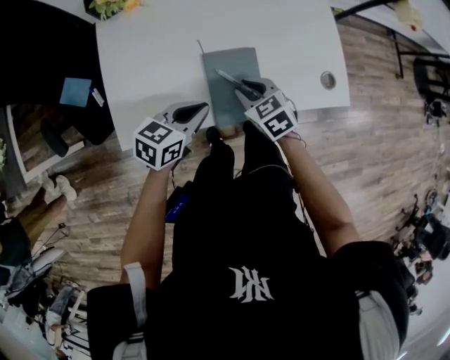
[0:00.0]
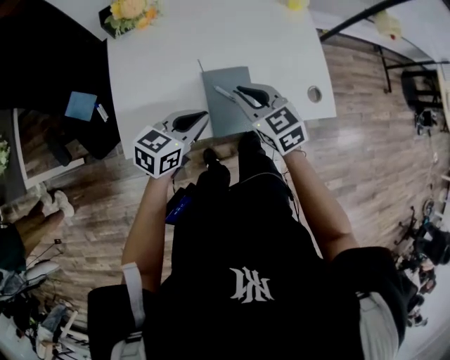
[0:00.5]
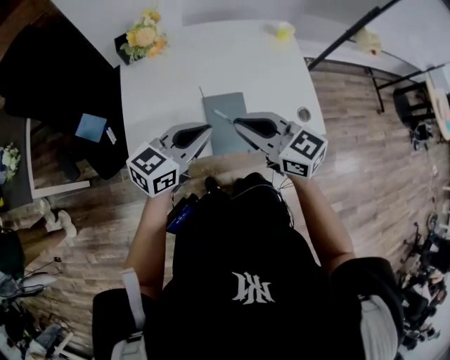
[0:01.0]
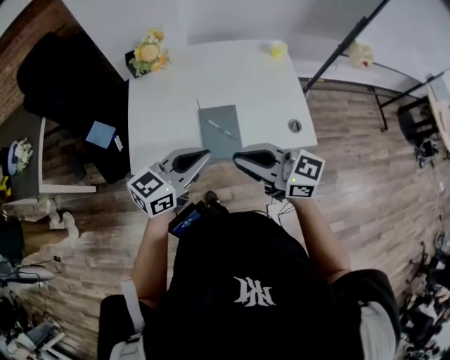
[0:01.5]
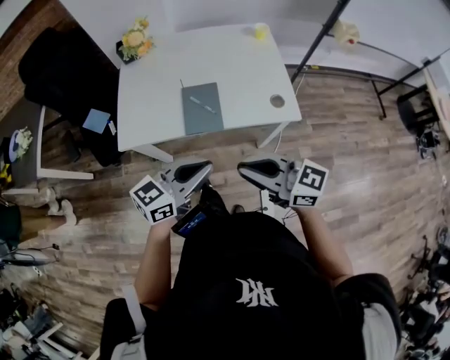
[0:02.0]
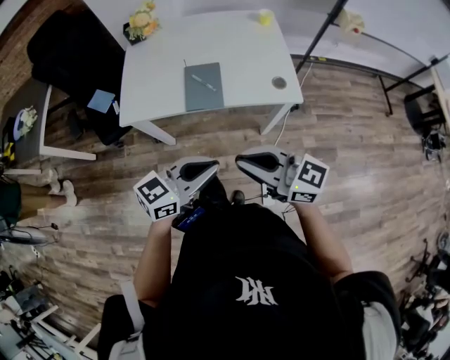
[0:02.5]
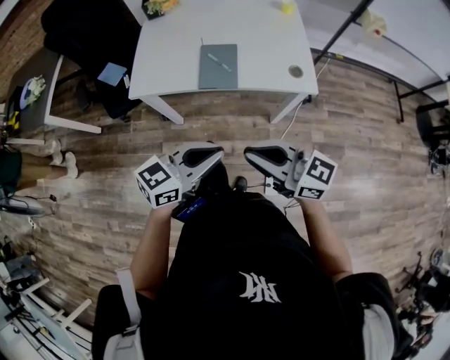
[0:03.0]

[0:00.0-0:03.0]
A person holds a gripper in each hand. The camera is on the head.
0:00.0 to 0:01.5: The grippers both shift upward and backward by approximately 25 cm. The right gripper points its fingers some 50 degrees further upward. The left gripper swivels approximately 30 degrees.
0:01.5 to 0:03.0: The left gripper ends up approximately 25 cm from where it was. Meanwhile the right gripper moves roughly 20 cm.

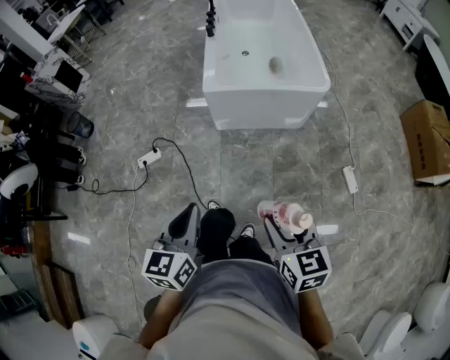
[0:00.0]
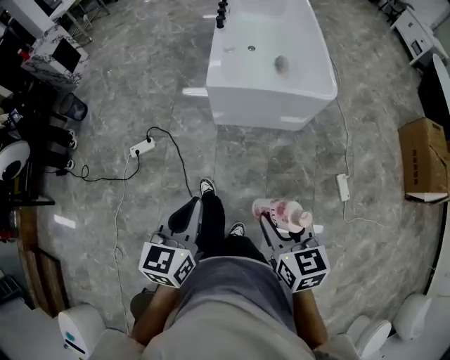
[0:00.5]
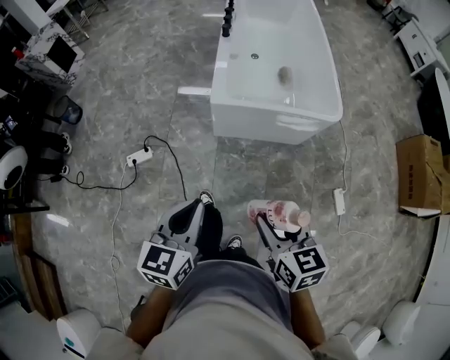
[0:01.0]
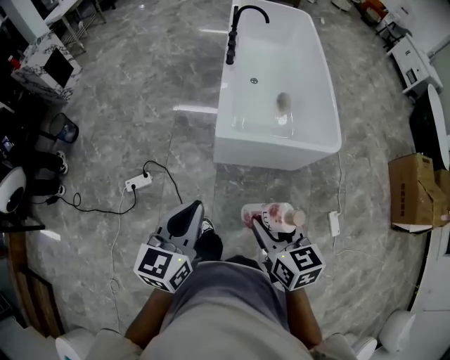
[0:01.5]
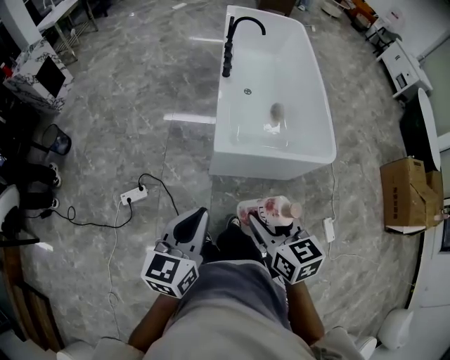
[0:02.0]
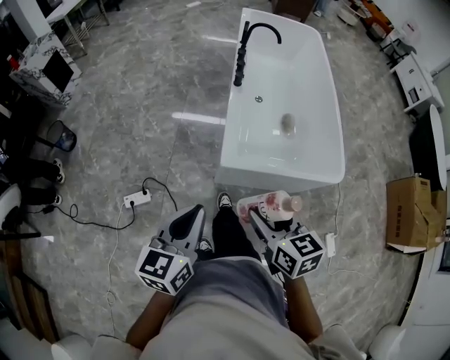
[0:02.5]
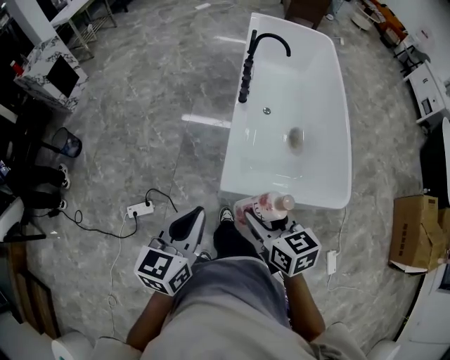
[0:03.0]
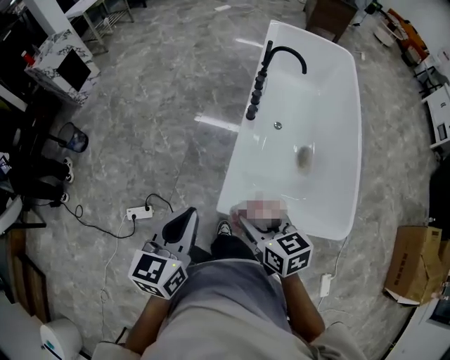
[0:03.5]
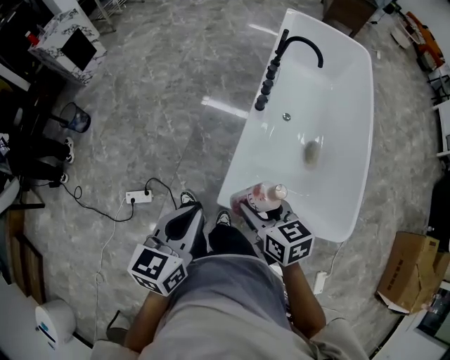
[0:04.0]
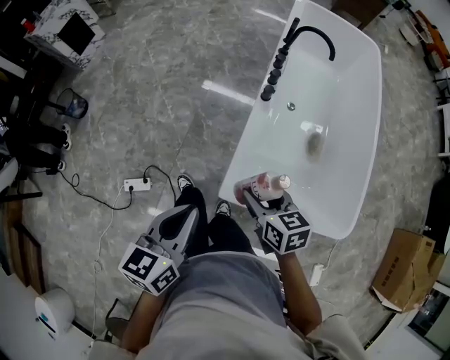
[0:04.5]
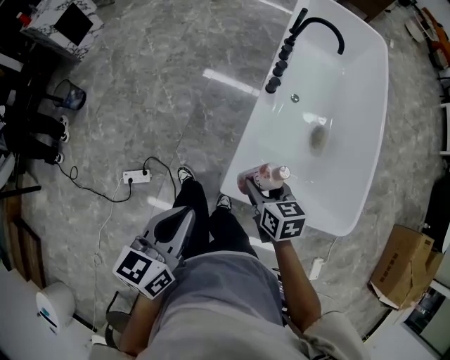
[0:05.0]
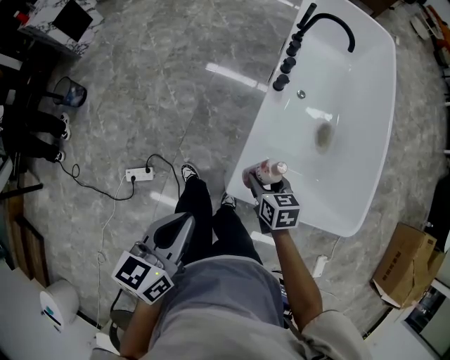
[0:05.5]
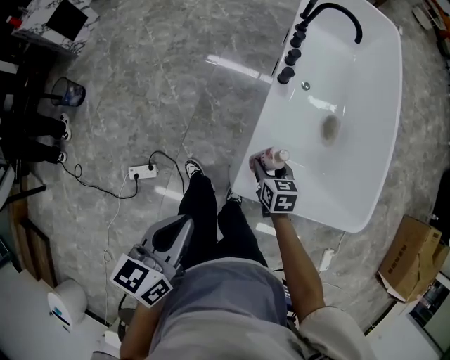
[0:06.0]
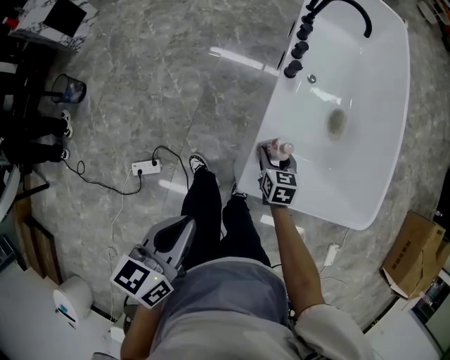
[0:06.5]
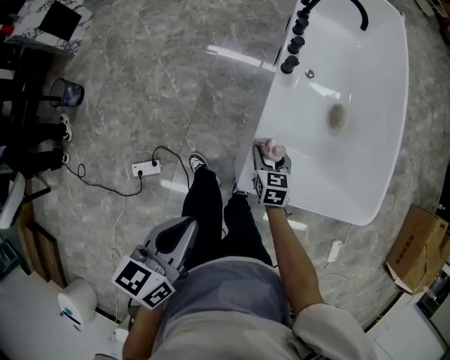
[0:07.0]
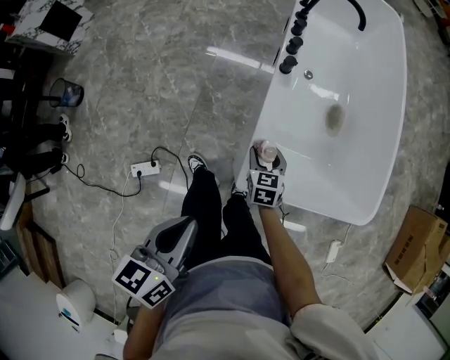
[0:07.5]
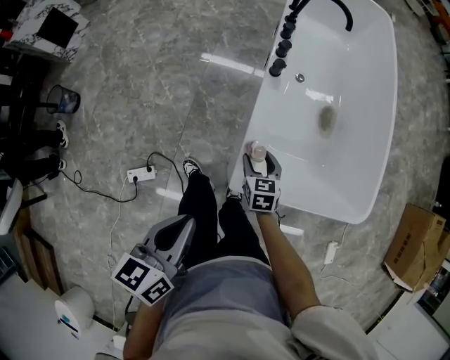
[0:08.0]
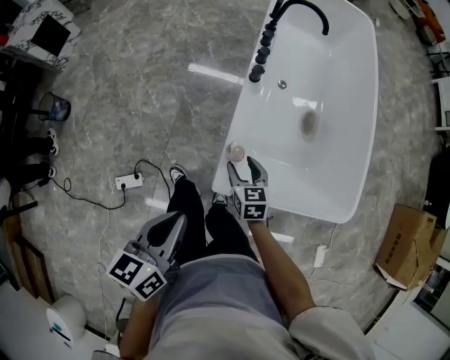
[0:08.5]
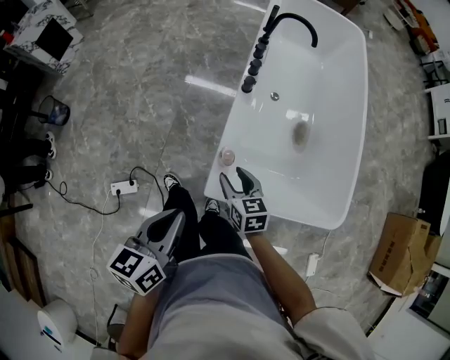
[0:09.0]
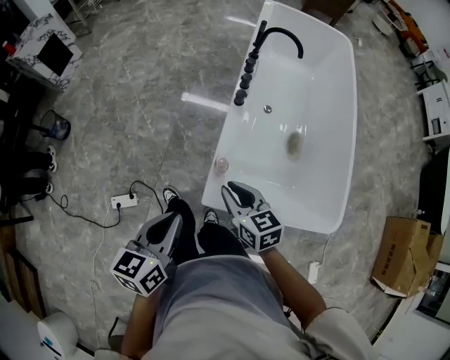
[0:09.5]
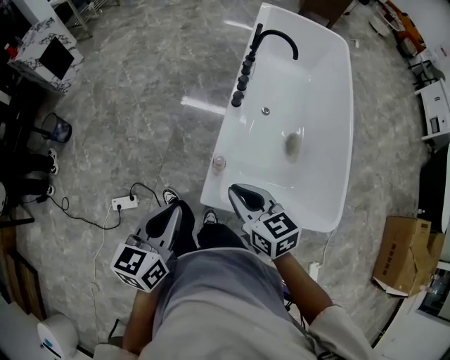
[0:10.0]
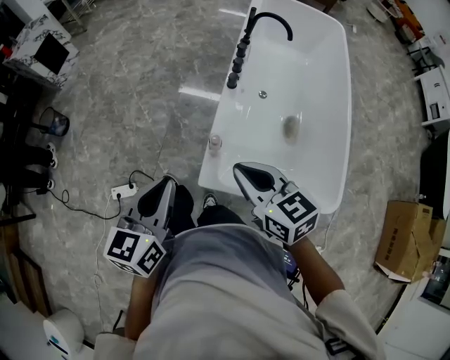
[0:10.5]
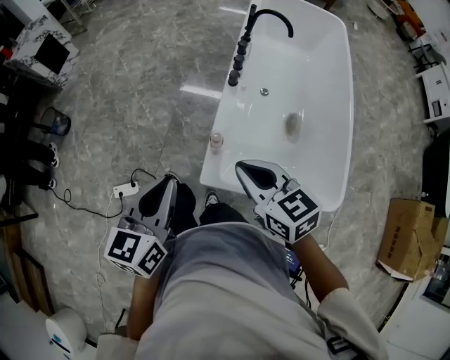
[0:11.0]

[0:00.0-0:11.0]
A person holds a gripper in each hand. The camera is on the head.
0:00.0 to 0:02.0: The right gripper moves forward and to the left, some 40 cm, while the left gripper shifts some 30 cm forward.
0:02.0 to 0:03.5: Both grippers travel together forward, about 30 cm.
0:03.5 to 0:05.5: The left gripper shifts roughly 10 cm downward and to the left. The right gripper is displaced downward and forward by about 20 cm.
0:05.5 to 0:07.5: The right gripper moves downward, approximately 10 cm, and rotates approximately 20 degrees.
0:07.5 to 0:09.0: The right gripper is displaced upward and backward by roughly 15 cm; the left gripper moves to the right, approximately 5 cm.
0:09.0 to 0:11.0: The left gripper is displaced upward by about 10 cm; the right gripper heads upward, covering roughly 20 cm, changes its angle by about 20 degrees, and closes up.

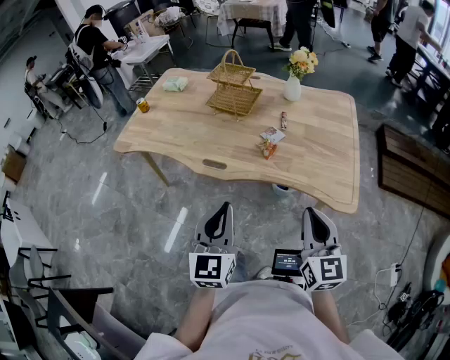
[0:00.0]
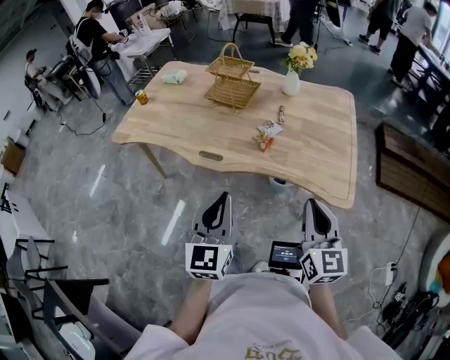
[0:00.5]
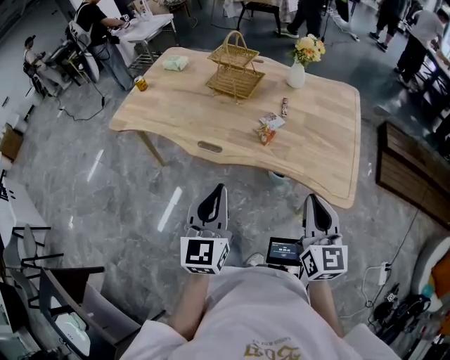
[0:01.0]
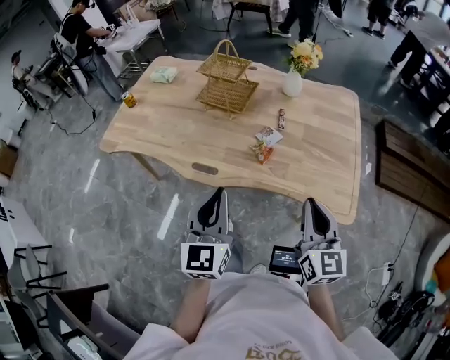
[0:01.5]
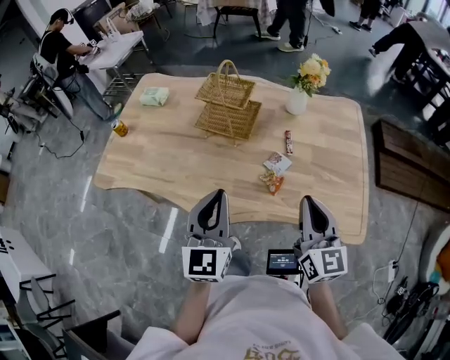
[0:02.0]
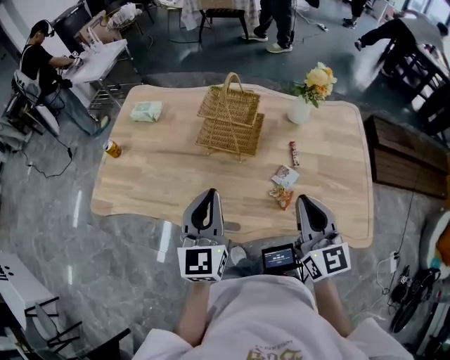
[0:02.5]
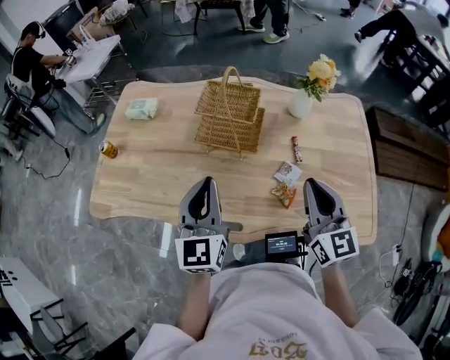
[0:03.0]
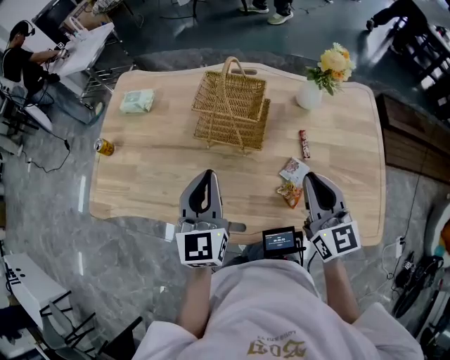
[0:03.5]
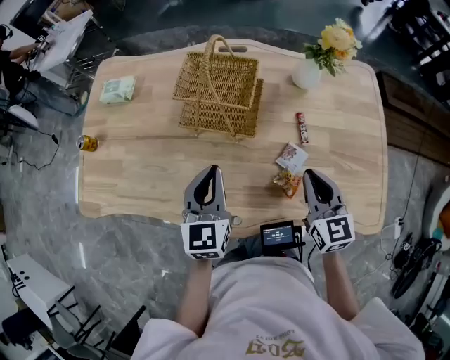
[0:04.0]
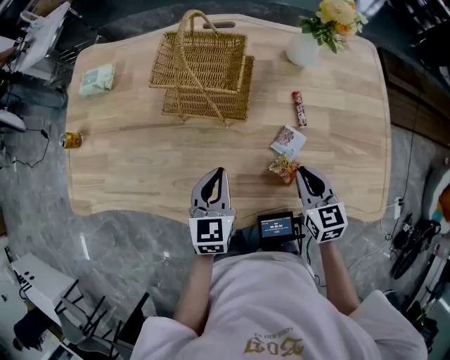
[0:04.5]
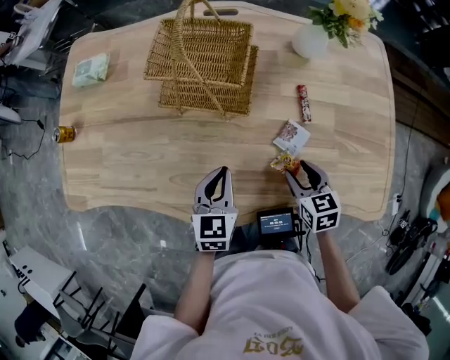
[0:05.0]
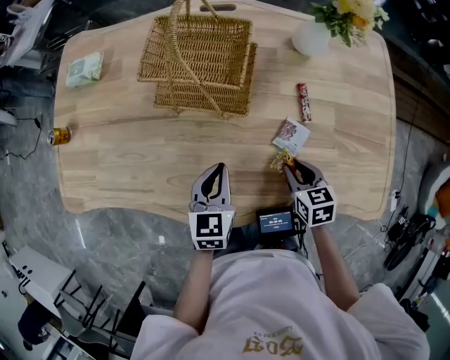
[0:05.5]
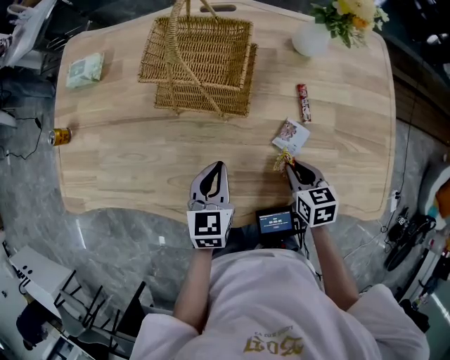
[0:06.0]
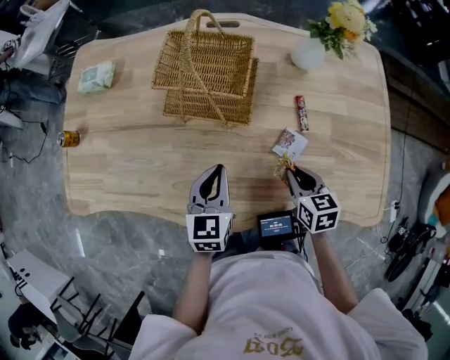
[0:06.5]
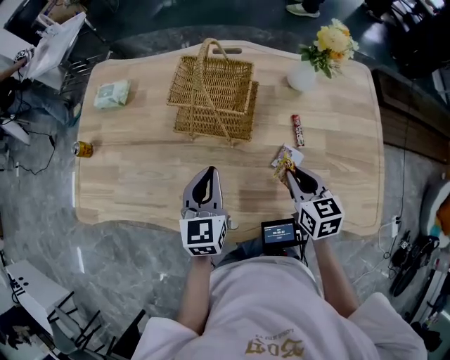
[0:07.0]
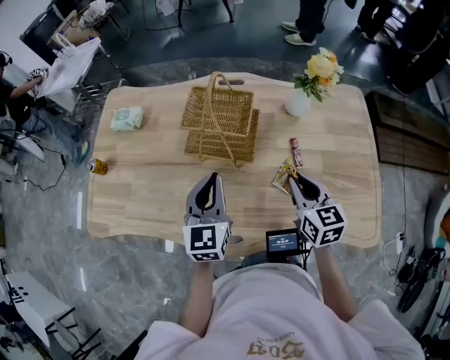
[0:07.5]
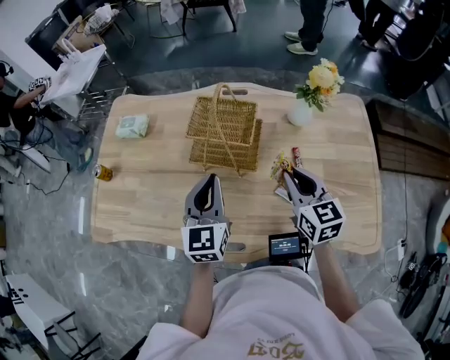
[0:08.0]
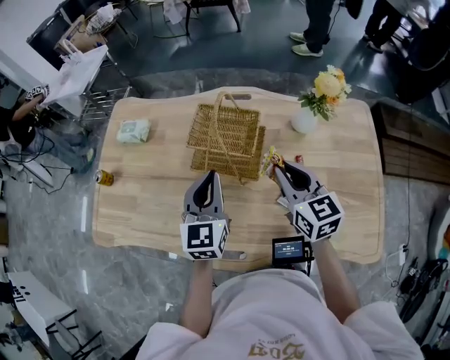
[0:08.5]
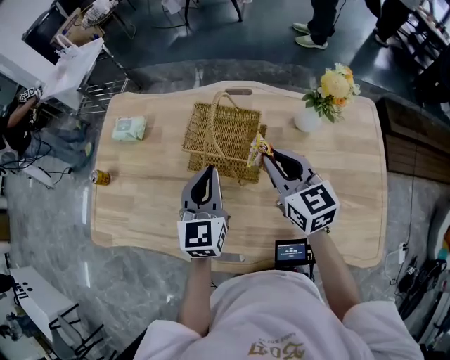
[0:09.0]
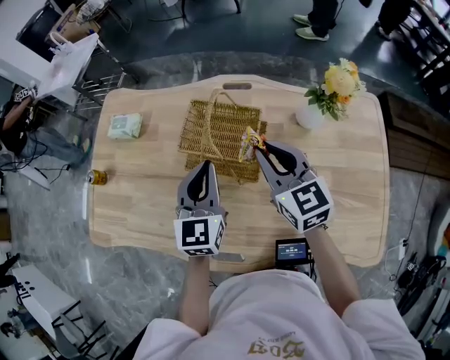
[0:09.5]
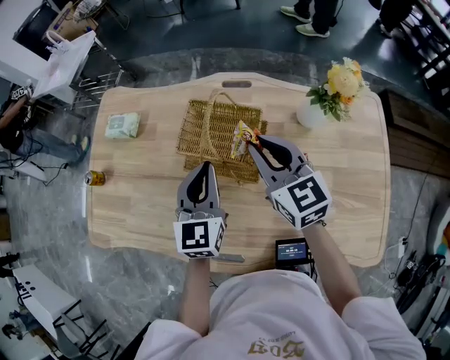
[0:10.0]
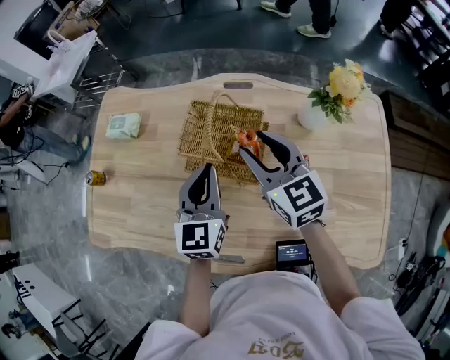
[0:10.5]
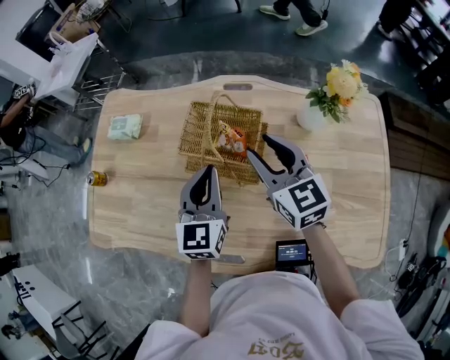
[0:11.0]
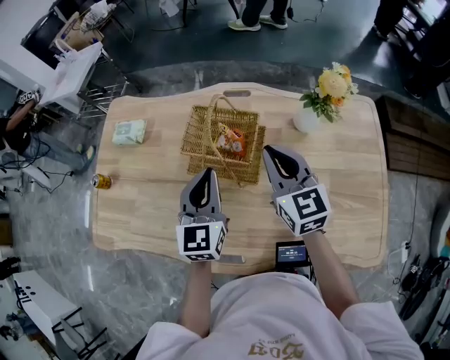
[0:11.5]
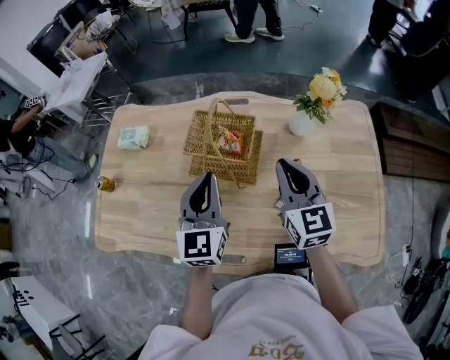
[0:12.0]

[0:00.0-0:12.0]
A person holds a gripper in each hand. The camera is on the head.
0:00.0 to 0:02.0: The grippers both shift forward by some 25 cm.
0:02.0 to 0:04.0: Both grippers move forward and downward, roughly 20 cm.
0:04.0 to 0:06.0: Both grippers travel together downward, approximately 15 cm. The right gripper angles its fingers downward, by roughly 30 degrees, and opens, then closes again.
0:06.0 to 0:08.0: The two grippers go some 20 cm upward. The left gripper swivels roughly 20 degrees, while the right gripper rotates roughly 30 degrees.
0:08.0 to 0:10.0: The right gripper moves forward and to the left, roughly 15 cm. Meanwhile the left gripper moves forward, approximately 10 cm.
0:10.0 to 0:12.0: The right gripper travels backward and to the right by about 10 cm, and opens and closes again, while the left gripper travels backward and upward by about 10 cm.
